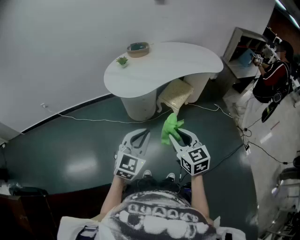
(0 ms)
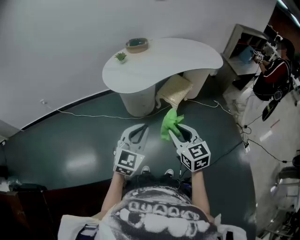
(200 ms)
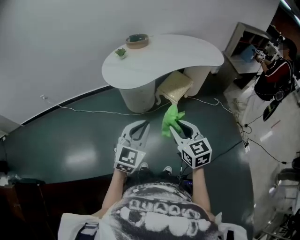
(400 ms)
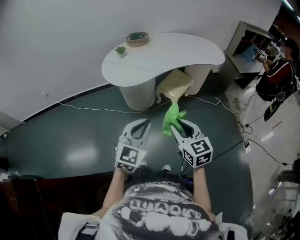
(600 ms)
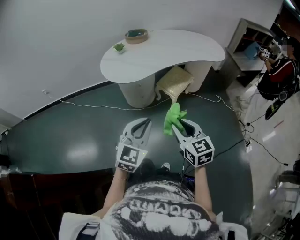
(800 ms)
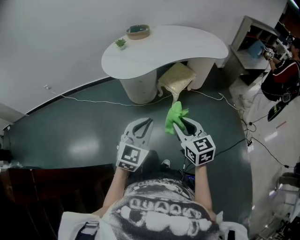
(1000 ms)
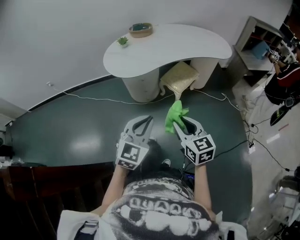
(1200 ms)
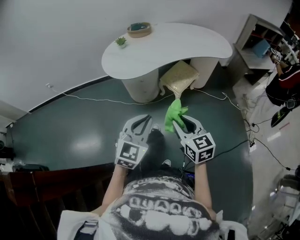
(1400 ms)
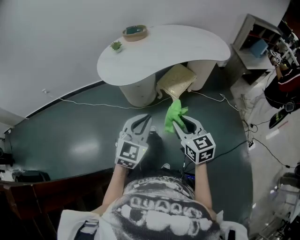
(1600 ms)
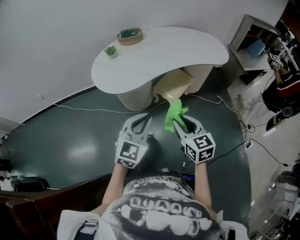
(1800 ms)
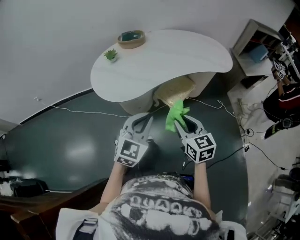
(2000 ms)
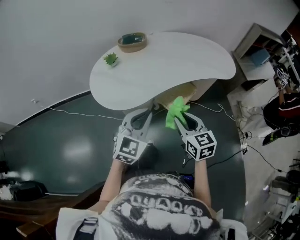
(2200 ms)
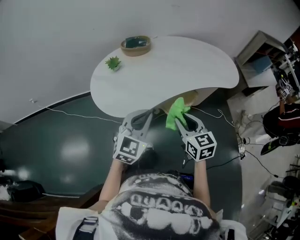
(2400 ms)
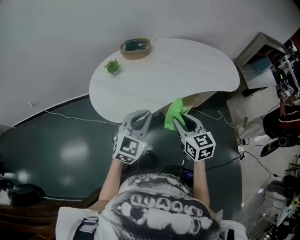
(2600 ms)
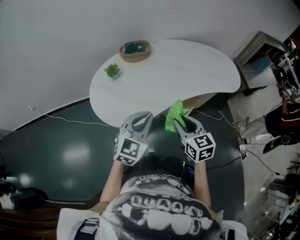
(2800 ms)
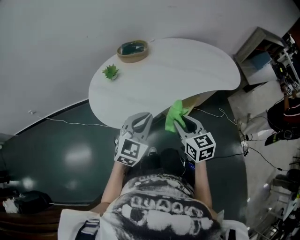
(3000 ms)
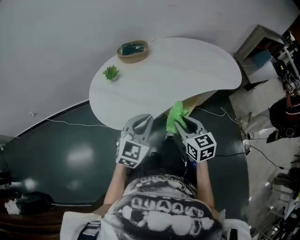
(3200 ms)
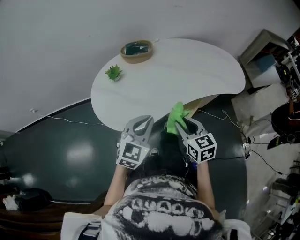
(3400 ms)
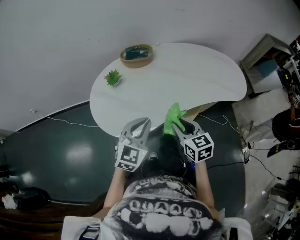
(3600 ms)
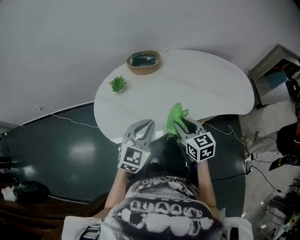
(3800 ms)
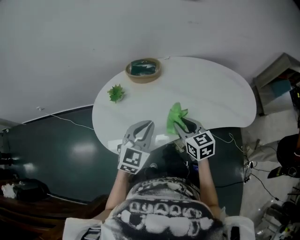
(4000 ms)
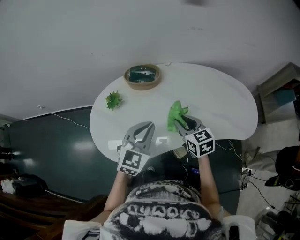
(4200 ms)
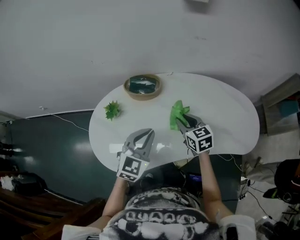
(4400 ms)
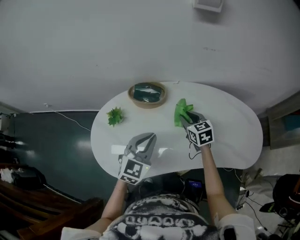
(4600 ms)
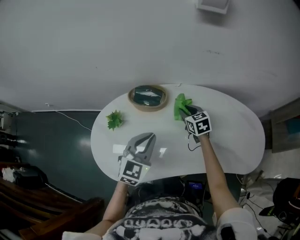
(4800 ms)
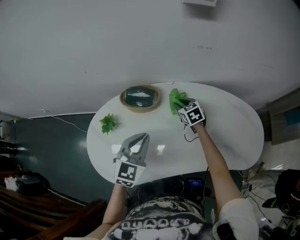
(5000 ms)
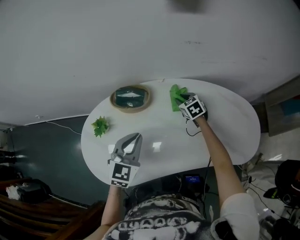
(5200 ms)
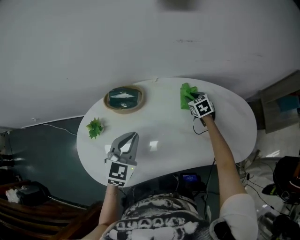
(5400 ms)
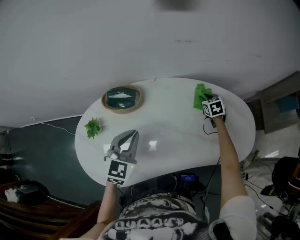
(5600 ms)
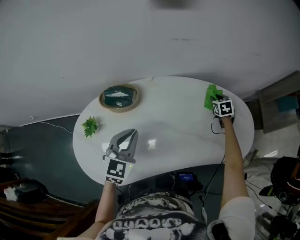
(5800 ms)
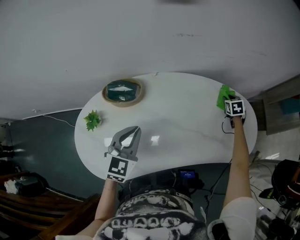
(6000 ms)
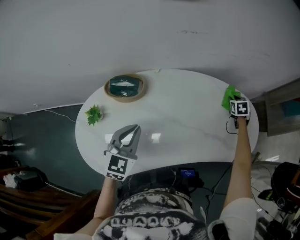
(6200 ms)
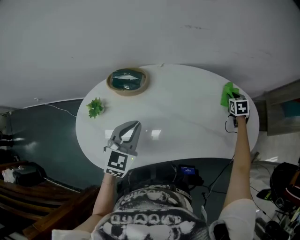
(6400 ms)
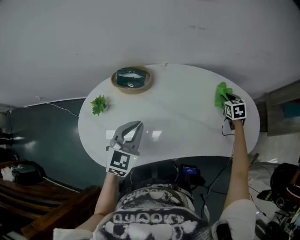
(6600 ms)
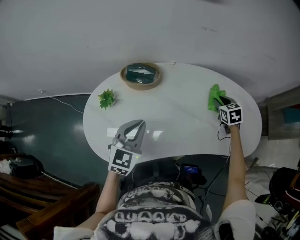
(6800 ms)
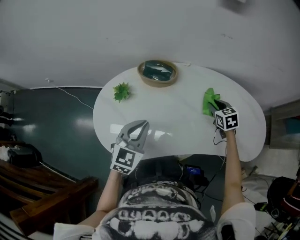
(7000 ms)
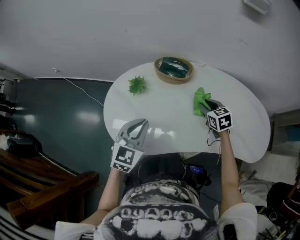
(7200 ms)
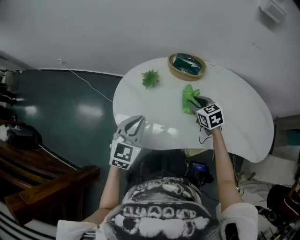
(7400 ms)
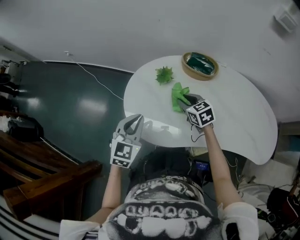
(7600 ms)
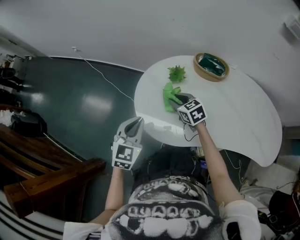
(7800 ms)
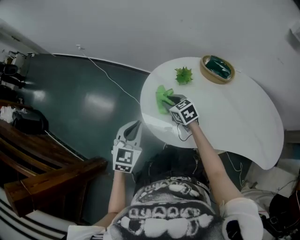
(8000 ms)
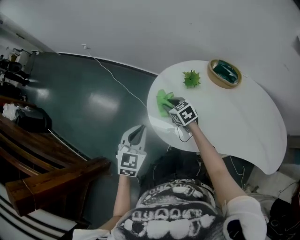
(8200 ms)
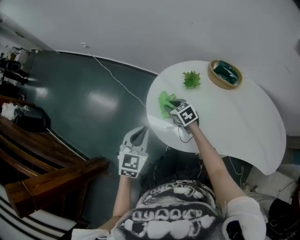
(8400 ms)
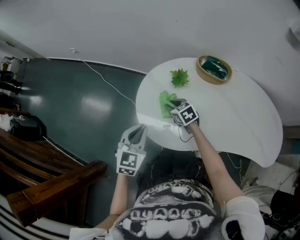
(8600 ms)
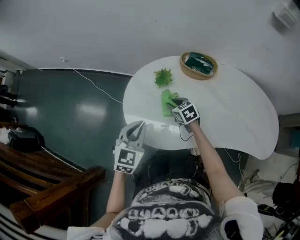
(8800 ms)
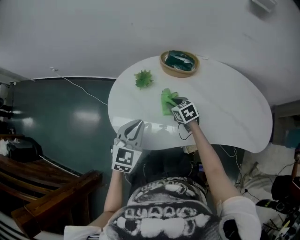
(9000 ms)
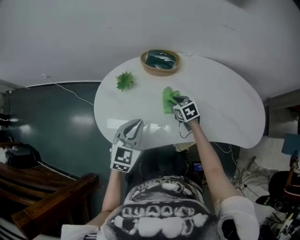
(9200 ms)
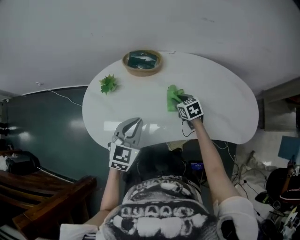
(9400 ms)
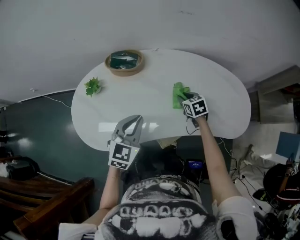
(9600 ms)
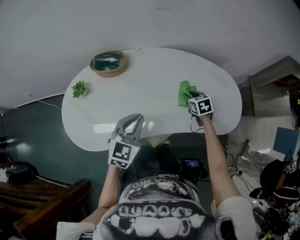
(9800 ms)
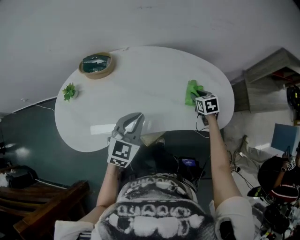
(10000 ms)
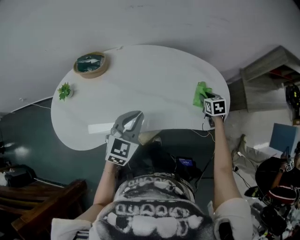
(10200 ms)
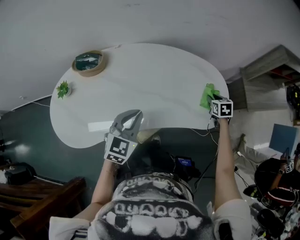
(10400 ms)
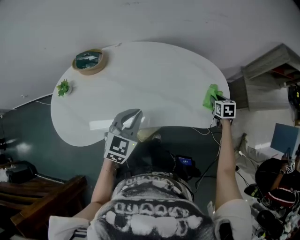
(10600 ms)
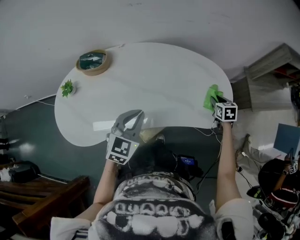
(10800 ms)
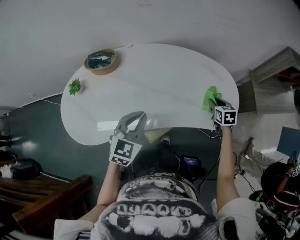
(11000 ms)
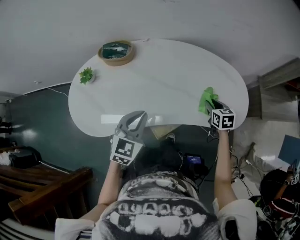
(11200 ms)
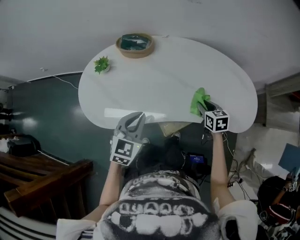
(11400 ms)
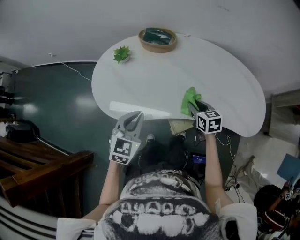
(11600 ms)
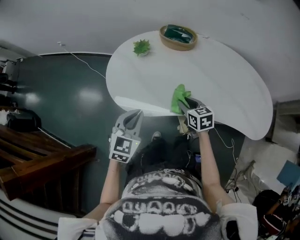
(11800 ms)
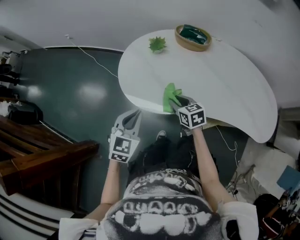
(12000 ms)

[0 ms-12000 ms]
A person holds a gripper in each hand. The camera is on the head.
0 ms to 1600 ms: Both grippers travel together to the right and forward, approximately 10 cm.
1600 ms to 3000 ms: The grippers both shift forward by approximately 30 cm.
3000 ms to 4400 ms: Both grippers travel together forward, some 30 cm.
4400 ms to 6000 ms: The left gripper is displaced forward by roughly 10 cm; the right gripper goes roughly 40 cm to the right and forward, and rotates some 40 degrees.
6000 ms to 7600 ms: The left gripper shifts by some 35 cm, and turns by some 20 degrees; the right gripper shifts by about 70 cm, and turns by roughly 50 degrees.
7600 ms to 9000 ms: The right gripper shifts some 10 cm downward, and goes to the left and returns, some 20 cm each way. The left gripper travels to the right by roughly 5 cm.
9000 ms to 10400 ms: The two grippers travel together, about 60 cm. The left gripper swivels about 20 degrees, while the right gripper swivels roughly 40 degrees.
10400 ms to 12000 ms: The two grippers travel together, roughly 60 cm. The right gripper rotates about 50 degrees, while the left gripper rotates approximately 30 degrees.

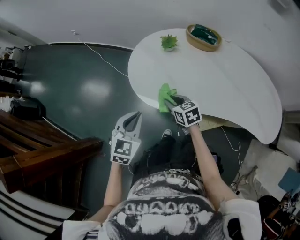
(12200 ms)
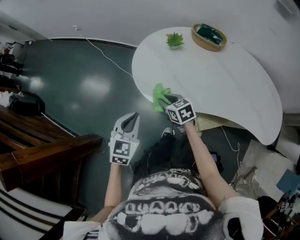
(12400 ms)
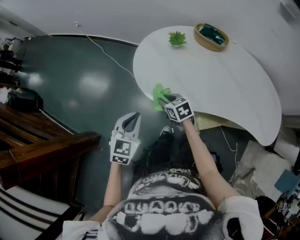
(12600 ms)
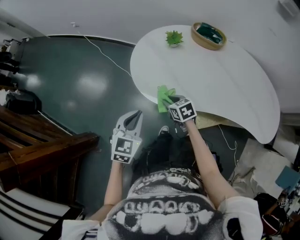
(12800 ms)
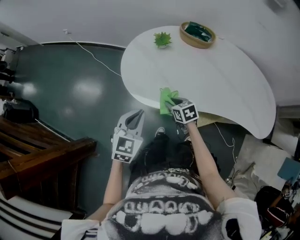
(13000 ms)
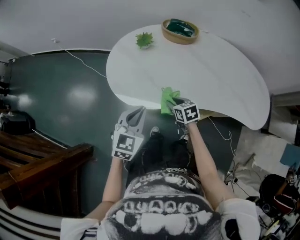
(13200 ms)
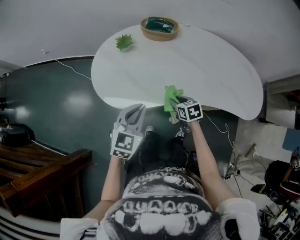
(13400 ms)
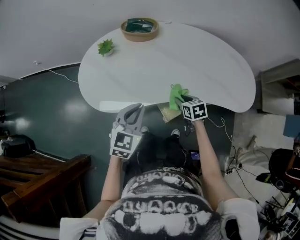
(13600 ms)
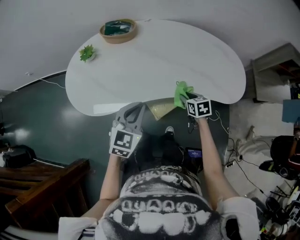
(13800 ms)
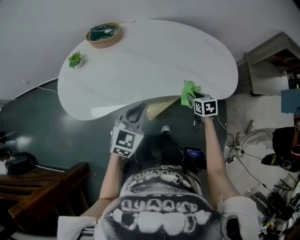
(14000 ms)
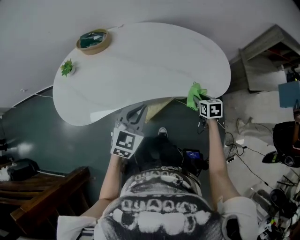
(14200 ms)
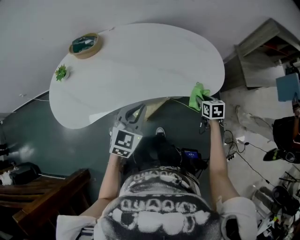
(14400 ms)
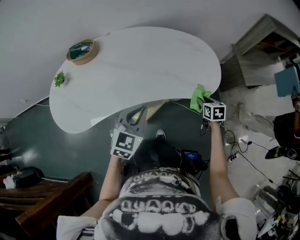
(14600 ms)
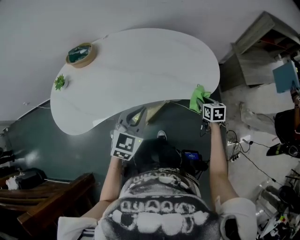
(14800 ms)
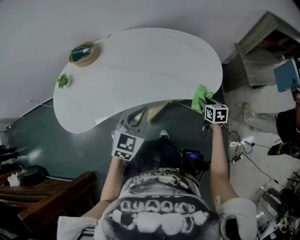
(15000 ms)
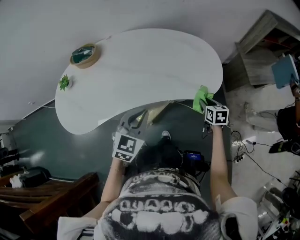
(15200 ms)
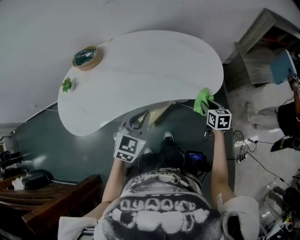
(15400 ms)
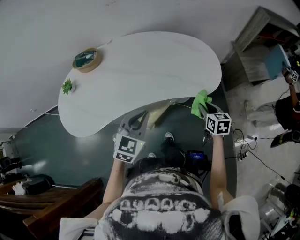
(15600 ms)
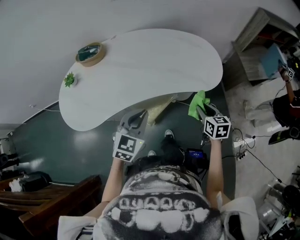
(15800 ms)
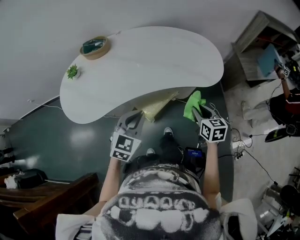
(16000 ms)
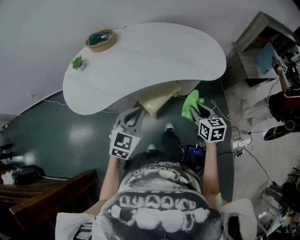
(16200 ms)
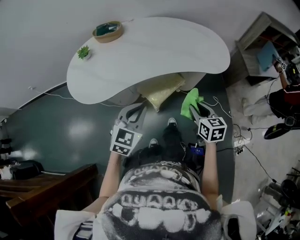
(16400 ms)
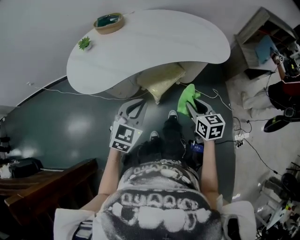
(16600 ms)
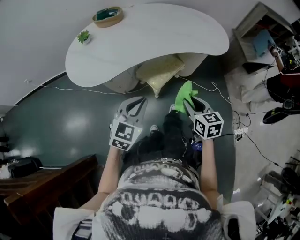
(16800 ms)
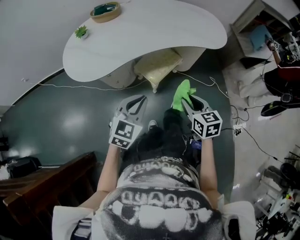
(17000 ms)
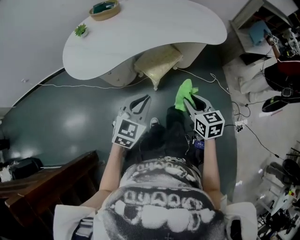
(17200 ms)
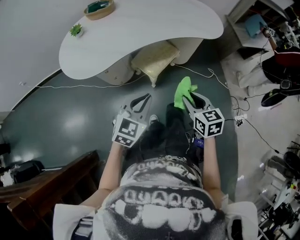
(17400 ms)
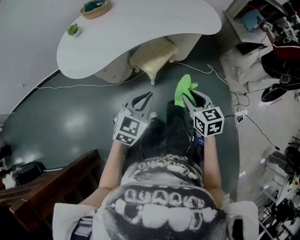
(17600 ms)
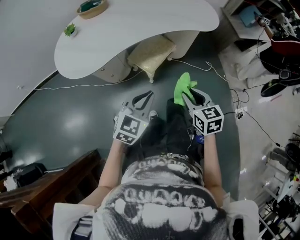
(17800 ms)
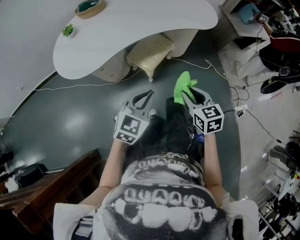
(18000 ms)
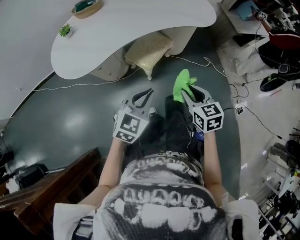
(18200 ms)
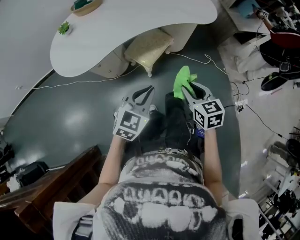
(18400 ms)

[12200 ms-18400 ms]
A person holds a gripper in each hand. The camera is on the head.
12200 ms to 13800 ms: The right gripper ends up approximately 40 cm from where it was, and changes its angle by approximately 30 degrees, while the left gripper moves approximately 35 cm, and turns by approximately 30 degrees.
13800 ms to 15400 ms: Both grippers travel together to the right, approximately 25 cm. The right gripper swivels about 20 degrees.
15400 ms to 16800 ms: Both grippers travel together backward and to the left, approximately 35 cm.
16800 ms to 18400 ms: The right gripper heads backward, covering some 5 cm. Meanwhile the left gripper is displaced to the right by approximately 5 cm.

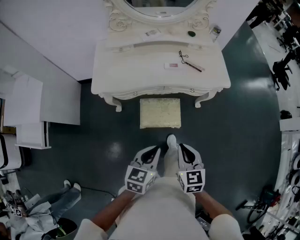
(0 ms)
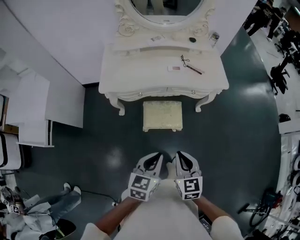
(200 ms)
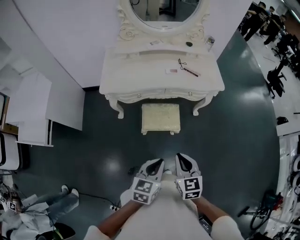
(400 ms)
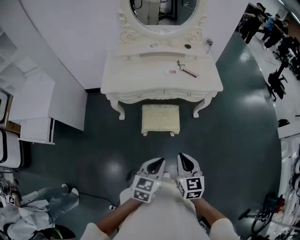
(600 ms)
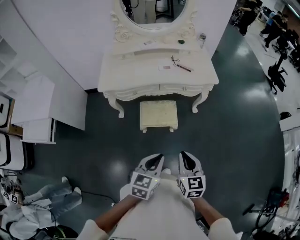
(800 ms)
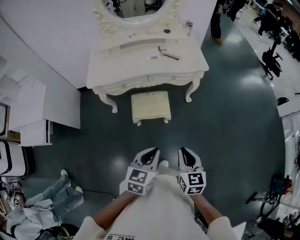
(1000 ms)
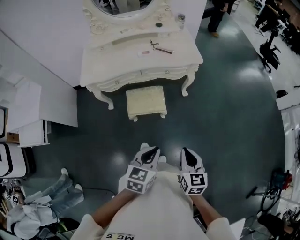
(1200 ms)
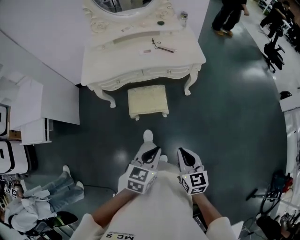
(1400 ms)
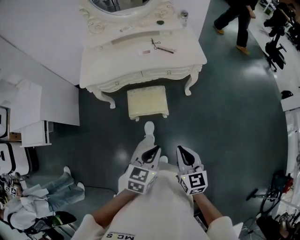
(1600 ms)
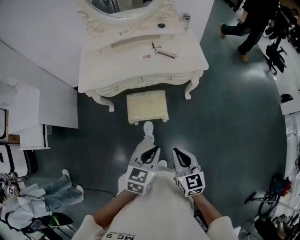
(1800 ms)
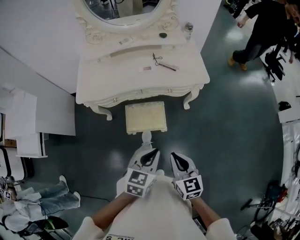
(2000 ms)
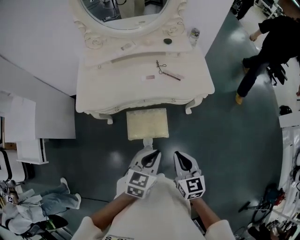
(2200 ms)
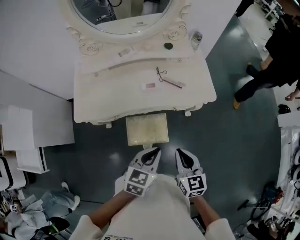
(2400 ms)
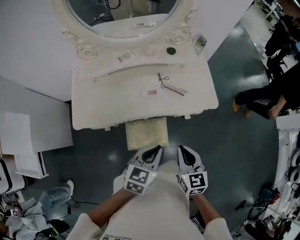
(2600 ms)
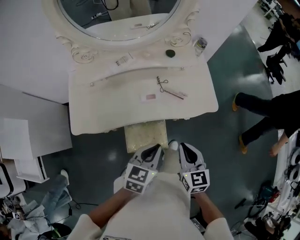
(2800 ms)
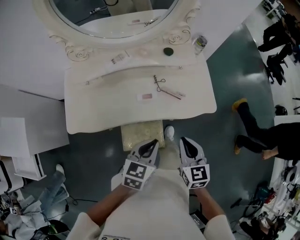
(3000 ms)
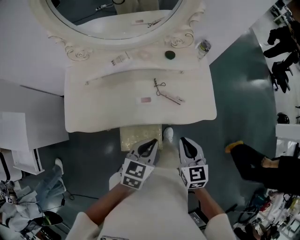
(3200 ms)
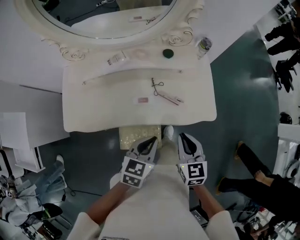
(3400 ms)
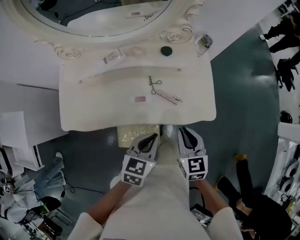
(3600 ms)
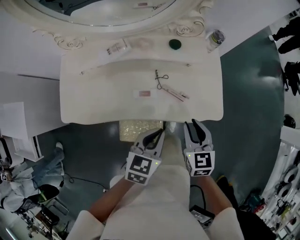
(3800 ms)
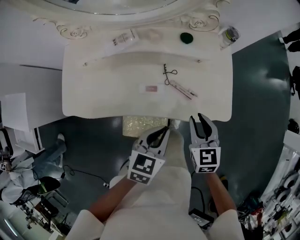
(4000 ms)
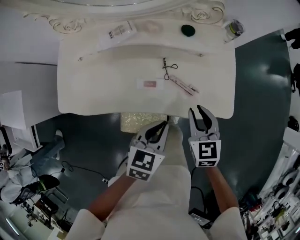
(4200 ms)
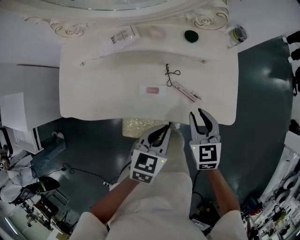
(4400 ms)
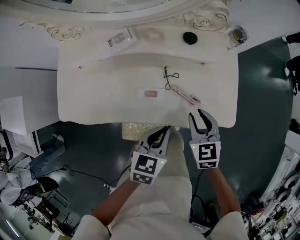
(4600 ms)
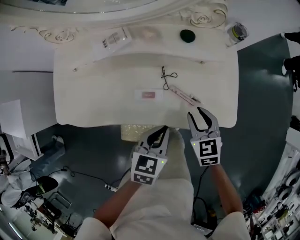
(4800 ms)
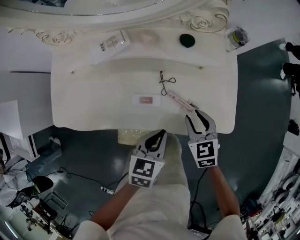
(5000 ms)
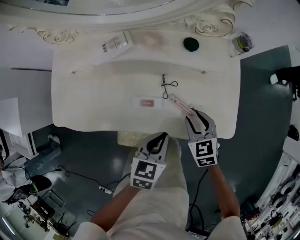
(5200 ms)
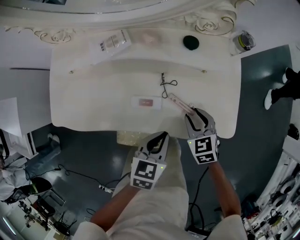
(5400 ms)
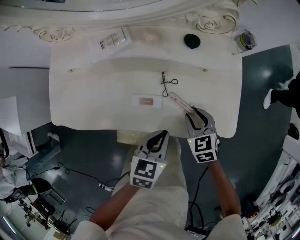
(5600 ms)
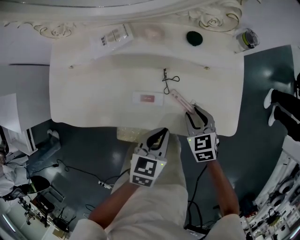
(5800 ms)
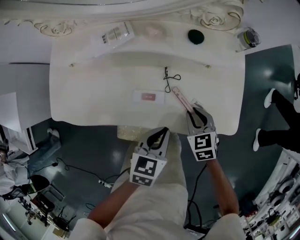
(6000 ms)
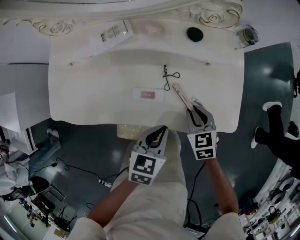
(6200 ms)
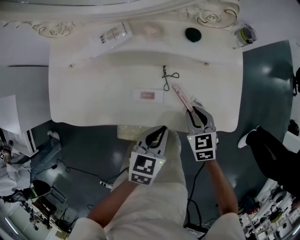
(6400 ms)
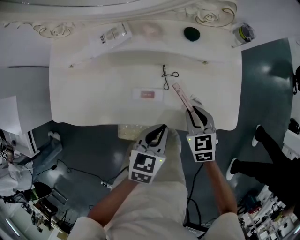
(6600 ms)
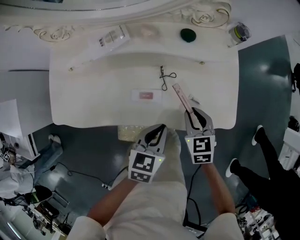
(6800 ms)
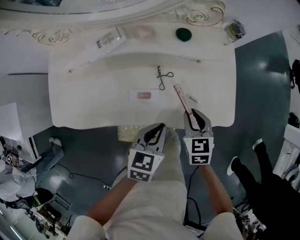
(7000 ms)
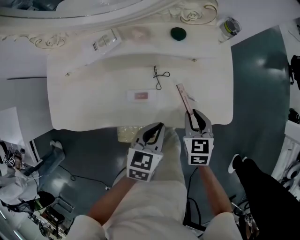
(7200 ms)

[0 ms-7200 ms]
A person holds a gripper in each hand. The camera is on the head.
0 ms to 1400 ms: The right gripper moves backward and to the right, about 25 cm. Meanwhile the left gripper heads to the right and backward, covering roughly 25 cm.
1400 ms to 2800 ms: The pair of grippers is taken forward, approximately 40 cm.
2800 ms to 4400 ms: Both grippers travel together forward and downward, some 20 cm.
4400 ms to 5800 ms: The left gripper moves downward, roughly 5 cm. Meanwhile the right gripper moves downward, about 10 cm.
5800 ms to 7200 ms: The right gripper moves roughly 5 cm, and rotates some 20 degrees.
